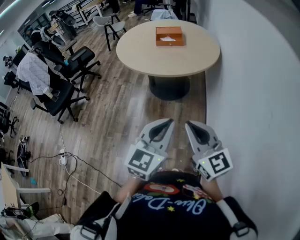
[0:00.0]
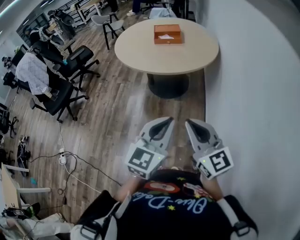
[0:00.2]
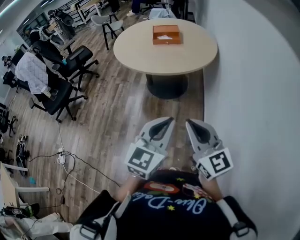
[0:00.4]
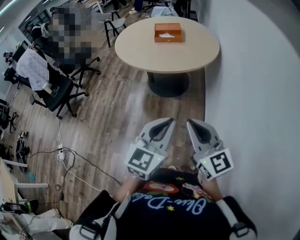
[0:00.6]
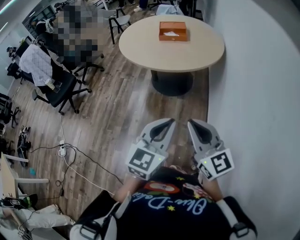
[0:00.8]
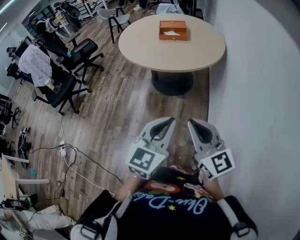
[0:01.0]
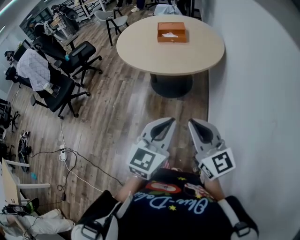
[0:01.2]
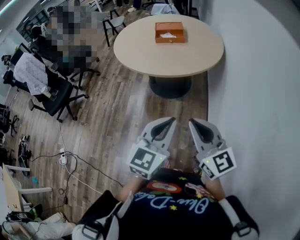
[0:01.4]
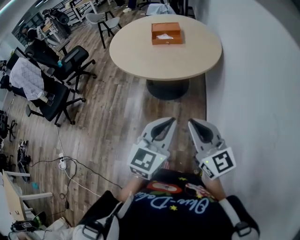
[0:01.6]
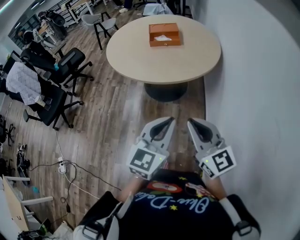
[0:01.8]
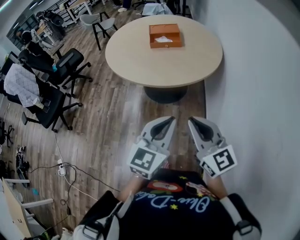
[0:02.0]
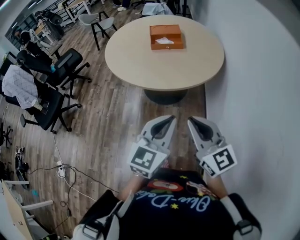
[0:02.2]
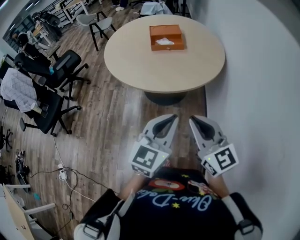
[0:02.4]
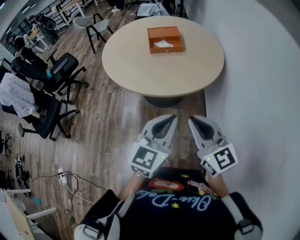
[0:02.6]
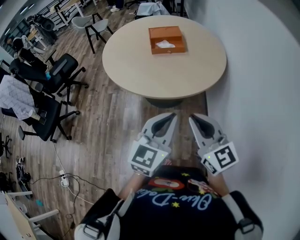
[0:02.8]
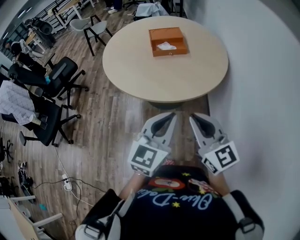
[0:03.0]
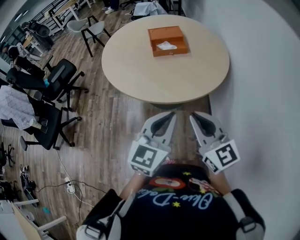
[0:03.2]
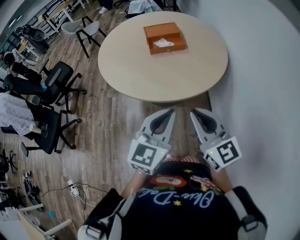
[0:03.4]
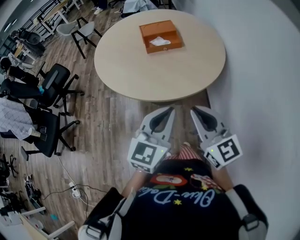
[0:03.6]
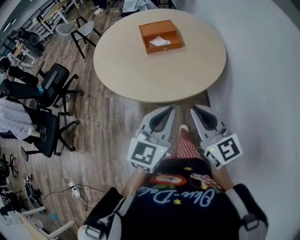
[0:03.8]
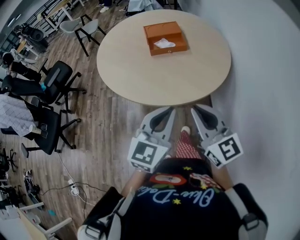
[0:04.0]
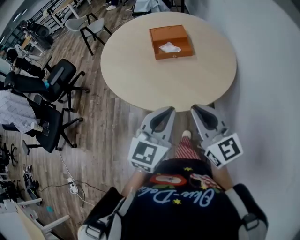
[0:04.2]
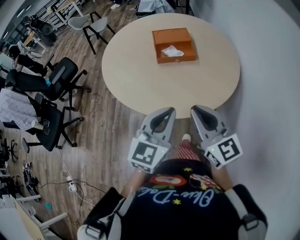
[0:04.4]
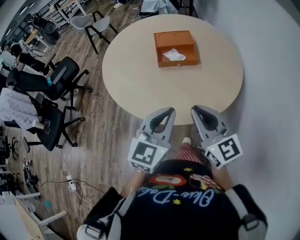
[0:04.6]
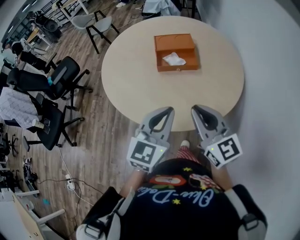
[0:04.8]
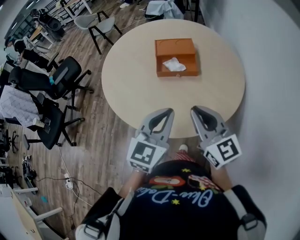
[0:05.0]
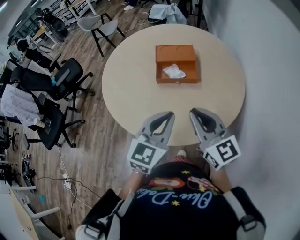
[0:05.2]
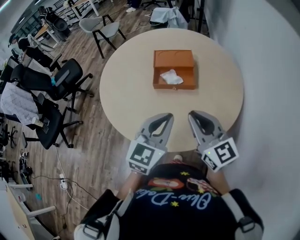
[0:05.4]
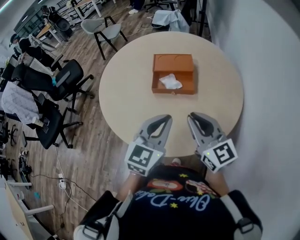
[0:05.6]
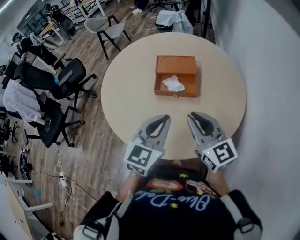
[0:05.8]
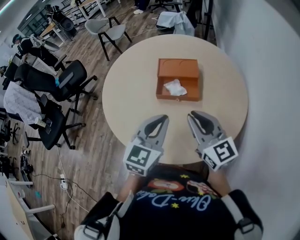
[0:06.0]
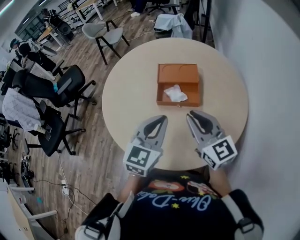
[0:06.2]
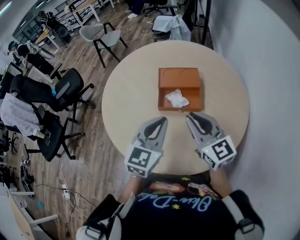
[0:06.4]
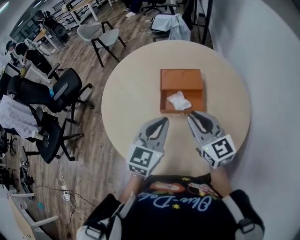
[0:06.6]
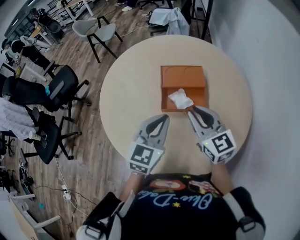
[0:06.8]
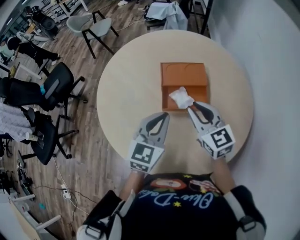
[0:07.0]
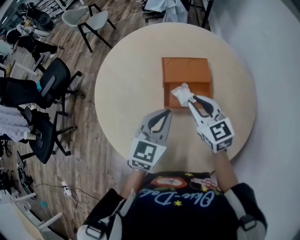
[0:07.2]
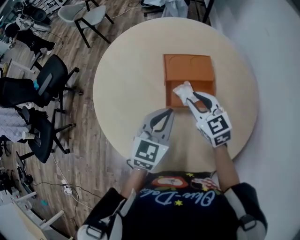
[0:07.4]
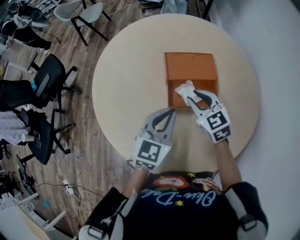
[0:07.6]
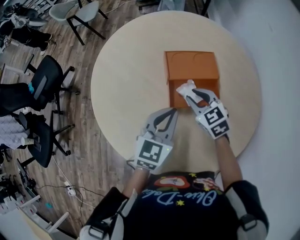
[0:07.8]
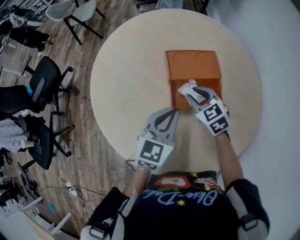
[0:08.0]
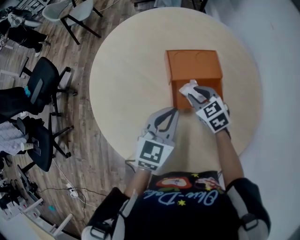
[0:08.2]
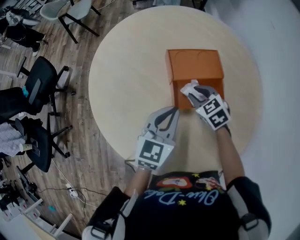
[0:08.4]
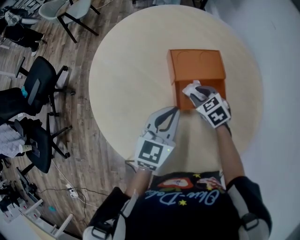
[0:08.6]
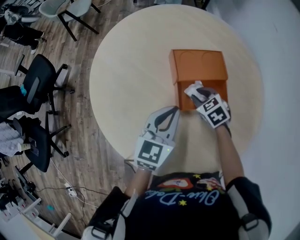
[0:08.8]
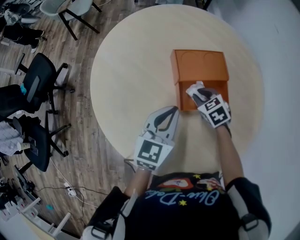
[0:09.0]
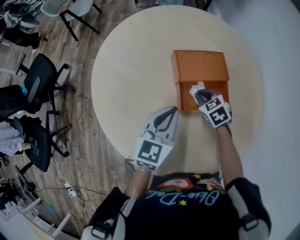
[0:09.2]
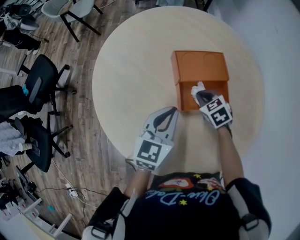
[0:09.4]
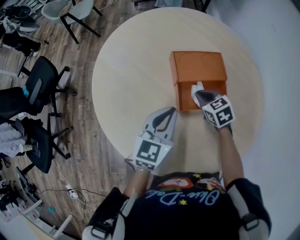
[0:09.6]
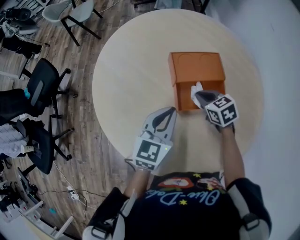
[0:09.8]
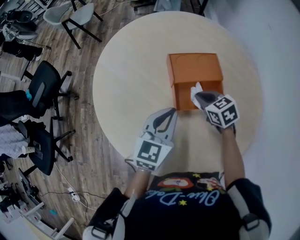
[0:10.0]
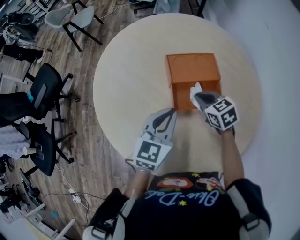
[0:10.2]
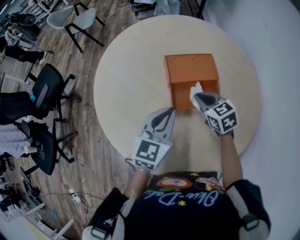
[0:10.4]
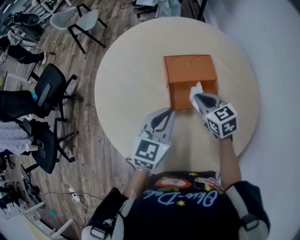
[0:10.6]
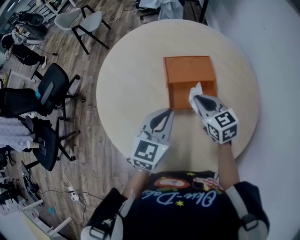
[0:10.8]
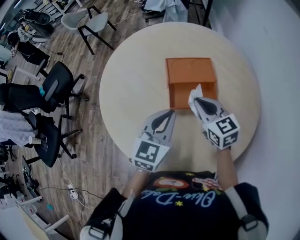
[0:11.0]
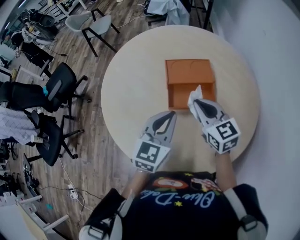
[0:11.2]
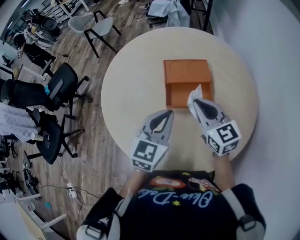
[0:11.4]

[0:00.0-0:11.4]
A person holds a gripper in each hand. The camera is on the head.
0:00.0 to 0:01.4: Both grippers move forward, about 5 cm.
0:01.4 to 0:02.8: Both grippers travel together forward, about 20 cm.
0:02.8 to 0:04.2: Both grippers travel together forward, approximately 15 cm.
0:04.2 to 0:05.6: The left gripper goes some 20 cm forward, while the right gripper goes about 20 cm forward and to the right.
0:05.6 to 0:07.2: Both grippers travel together forward, some 20 cm. The right gripper changes its angle by approximately 20 degrees.
0:07.2 to 0:08.6: The left gripper travels forward by some 5 cm; the right gripper goes roughly 15 cm downward and forward, and angles its fingers downward, by some 40 degrees.
0:08.6 to 0:10.0: The right gripper closes.
0:10.0 to 0:11.4: The left gripper is displaced upward and backward by some 10 cm. Meanwhile the right gripper travels upward and backward by about 20 cm, and tips its fingers upward by roughly 40 degrees.

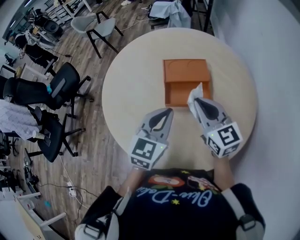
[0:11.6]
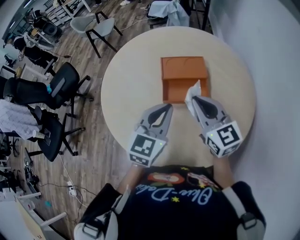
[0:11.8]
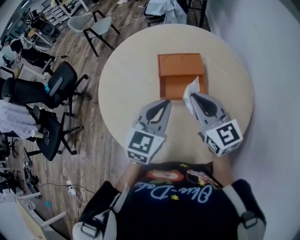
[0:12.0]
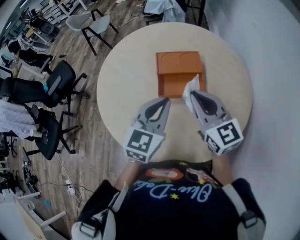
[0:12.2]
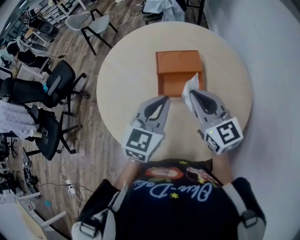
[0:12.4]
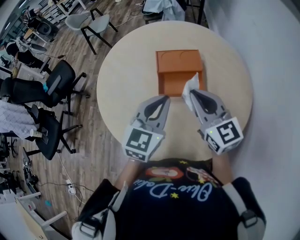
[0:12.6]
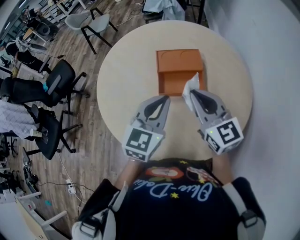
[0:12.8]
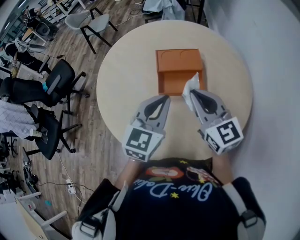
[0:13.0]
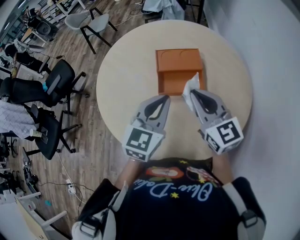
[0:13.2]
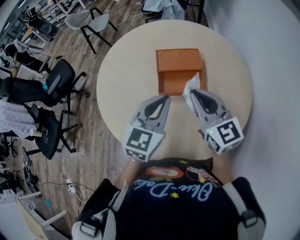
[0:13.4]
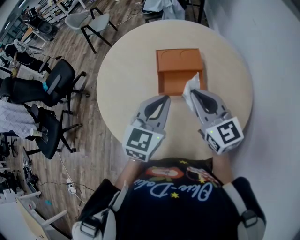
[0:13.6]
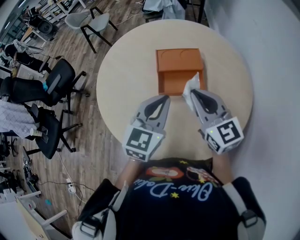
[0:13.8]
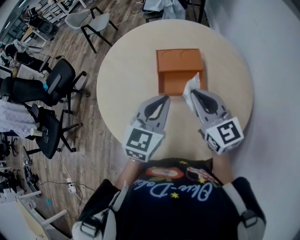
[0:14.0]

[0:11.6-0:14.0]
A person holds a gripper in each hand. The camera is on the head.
0:11.6 to 0:12.8: The grippers stay close to where they were, moving slightly.
0:12.8 to 0:14.0: Both grippers stay put.

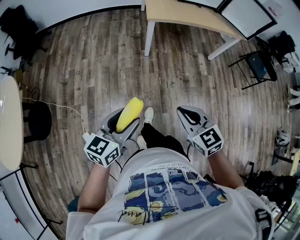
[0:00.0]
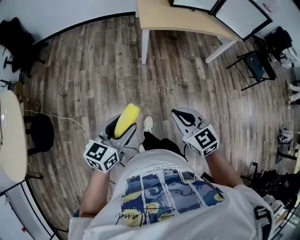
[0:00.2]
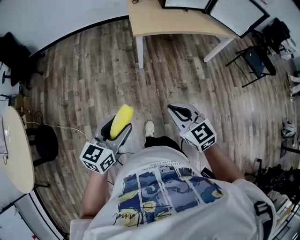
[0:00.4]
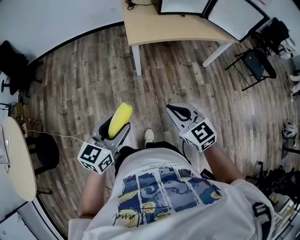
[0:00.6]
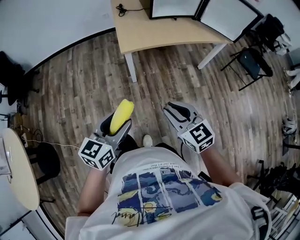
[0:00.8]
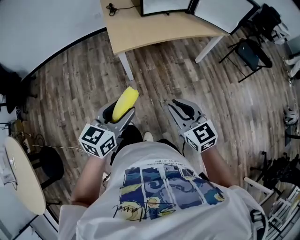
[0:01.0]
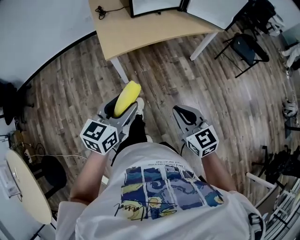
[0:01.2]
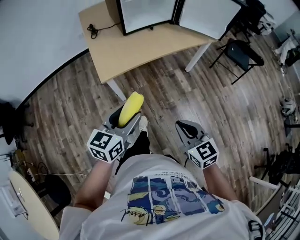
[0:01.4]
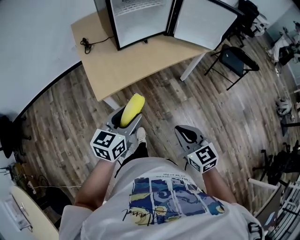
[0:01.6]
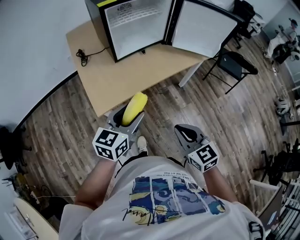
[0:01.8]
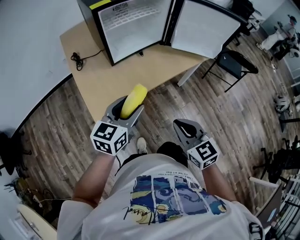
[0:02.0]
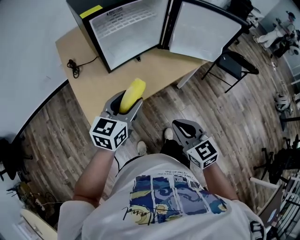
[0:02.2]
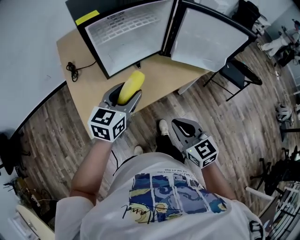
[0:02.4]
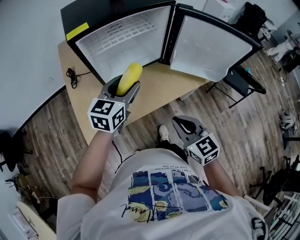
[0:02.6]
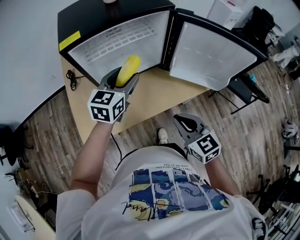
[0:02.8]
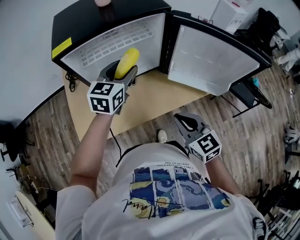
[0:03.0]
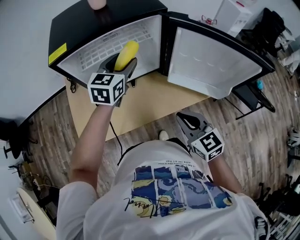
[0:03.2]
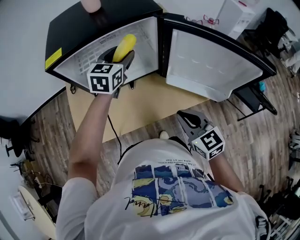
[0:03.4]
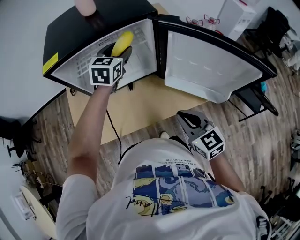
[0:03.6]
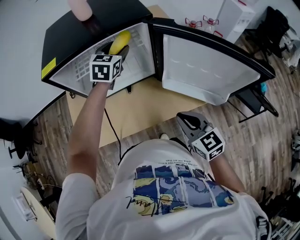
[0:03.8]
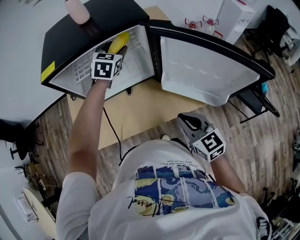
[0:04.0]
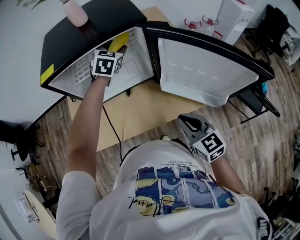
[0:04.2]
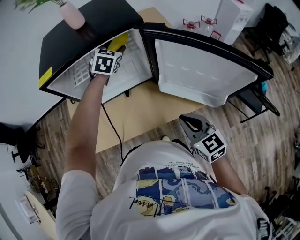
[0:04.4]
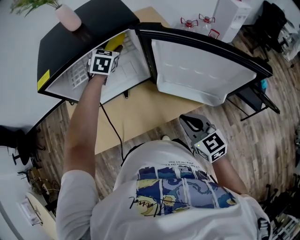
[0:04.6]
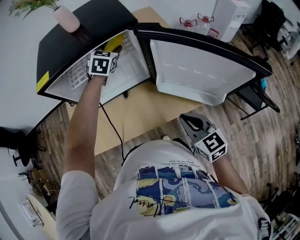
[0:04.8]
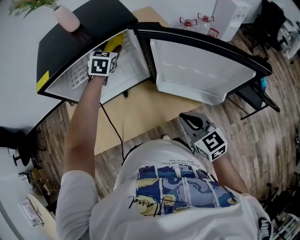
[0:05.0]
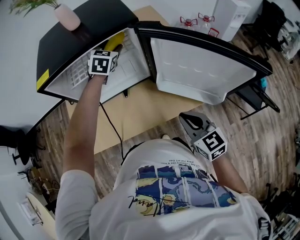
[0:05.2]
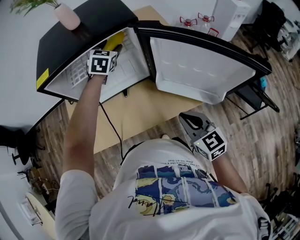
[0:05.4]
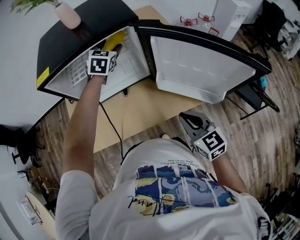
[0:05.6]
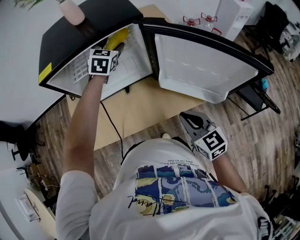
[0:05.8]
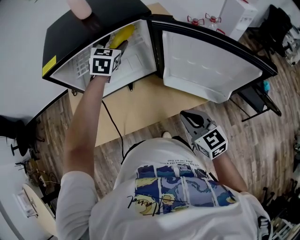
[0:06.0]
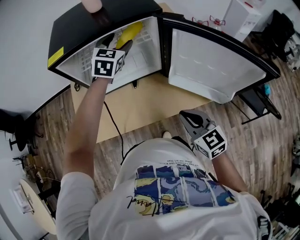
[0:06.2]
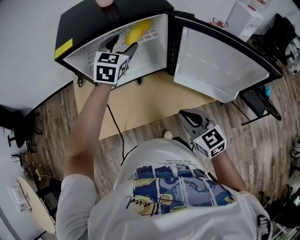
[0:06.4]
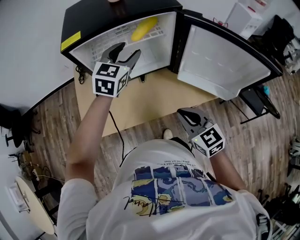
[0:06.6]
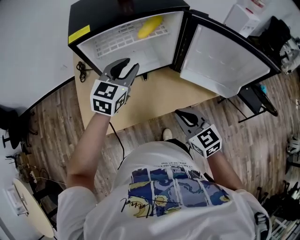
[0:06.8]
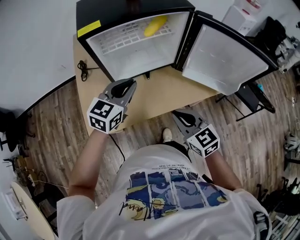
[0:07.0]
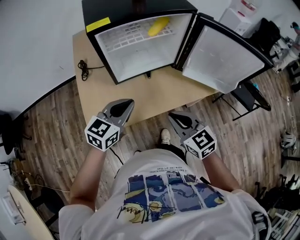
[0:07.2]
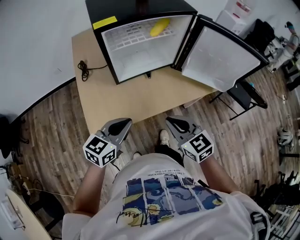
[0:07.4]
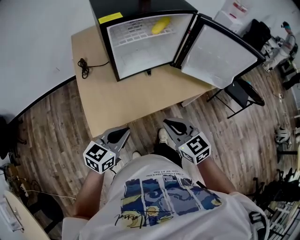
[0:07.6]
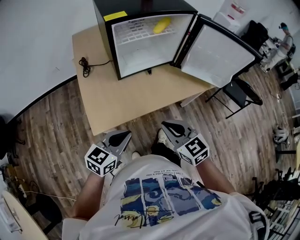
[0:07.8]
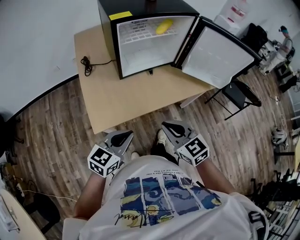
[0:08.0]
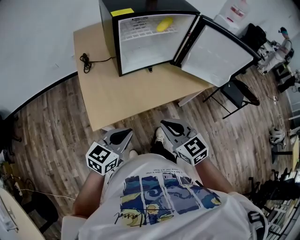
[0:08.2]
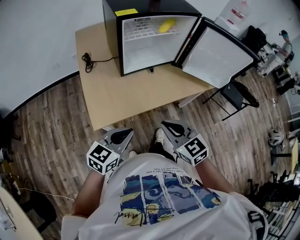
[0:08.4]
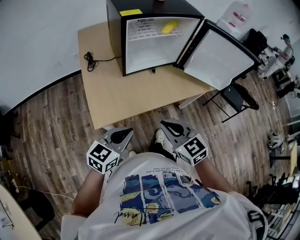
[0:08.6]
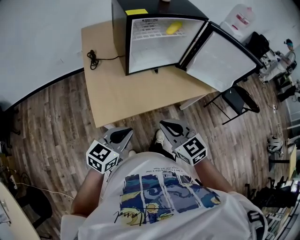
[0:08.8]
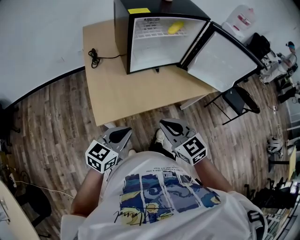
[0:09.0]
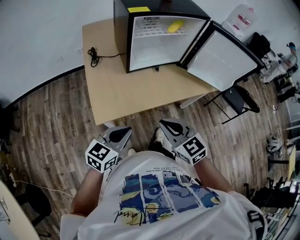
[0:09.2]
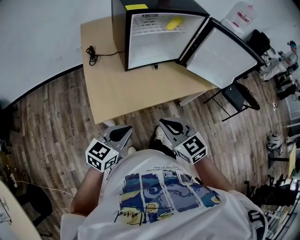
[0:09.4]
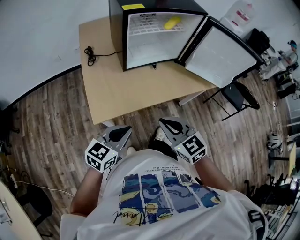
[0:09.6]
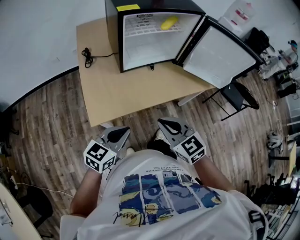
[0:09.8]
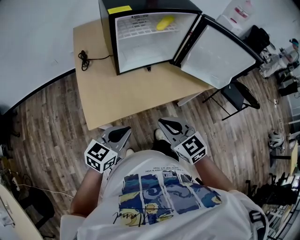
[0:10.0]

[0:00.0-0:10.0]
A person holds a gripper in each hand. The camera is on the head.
0:00.0 to 0:01.4: The right gripper shifts approximately 30 cm forward and to the right, and swivels roughly 20 degrees. Meanwhile the left gripper moves forward, some 40 cm.
0:01.4 to 0:02.8: Both grippers are carried forward, approximately 50 cm.
0:02.8 to 0:04.2: The left gripper goes about 25 cm forward, and turns by approximately 30 degrees. Meanwhile the right gripper heads to the right and forward, covering some 15 cm.
0:04.2 to 0:05.8: The grippers make only small movements.
0:05.8 to 0:07.2: The left gripper is displaced backward and to the left by roughly 40 cm, rotates roughly 30 degrees, and closes. Meanwhile the right gripper shifts roughly 20 cm to the left.
0:07.2 to 0:08.6: The right gripper goes some 15 cm backward and to the left, while the left gripper goes about 20 cm backward.
0:08.6 to 0:10.0: The grippers stay close to where they were, moving slightly.
